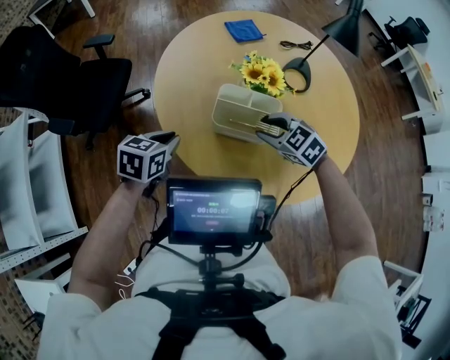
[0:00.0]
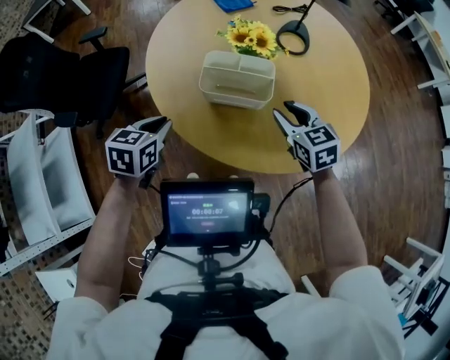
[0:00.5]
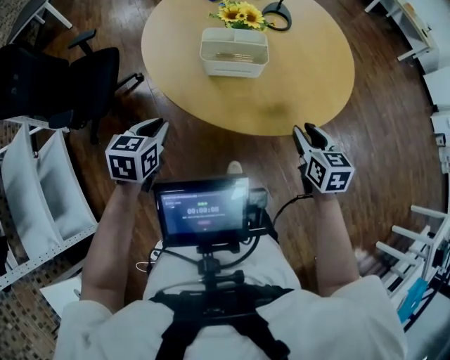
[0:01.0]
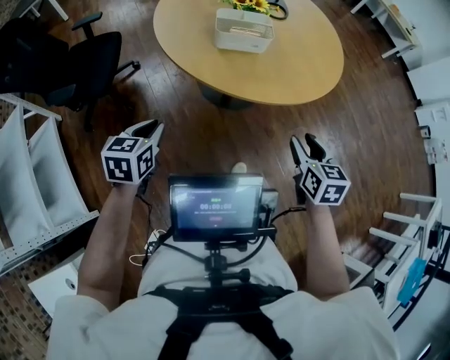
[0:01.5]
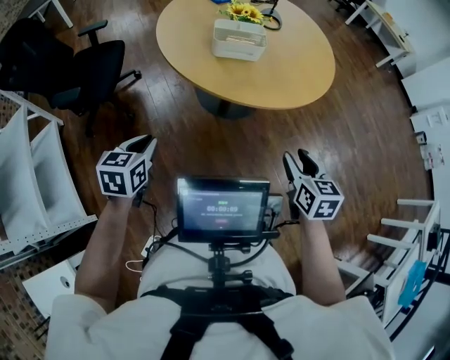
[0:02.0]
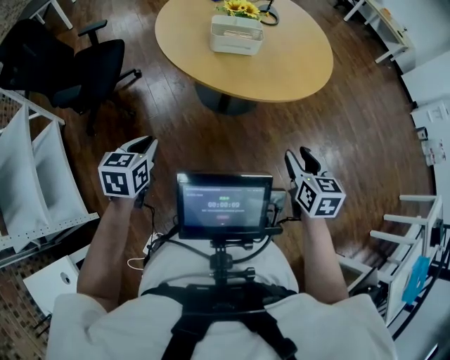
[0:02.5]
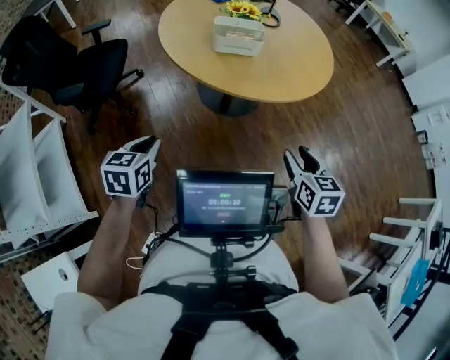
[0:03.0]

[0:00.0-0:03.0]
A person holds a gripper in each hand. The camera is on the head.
0:00.0 to 0:01.5: The left gripper moves approximately 30 cm. Meanwhile the right gripper ends up about 40 cm from where it was, and changes its angle by approximately 70 degrees.
0:01.5 to 0:03.0: The left gripper changes place by about 5 cm.

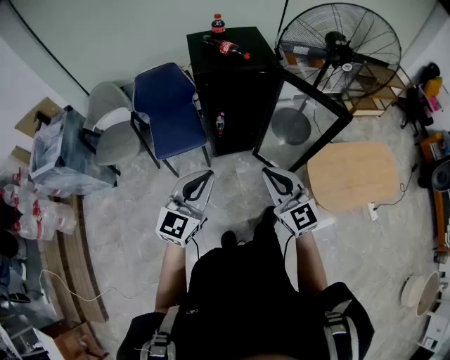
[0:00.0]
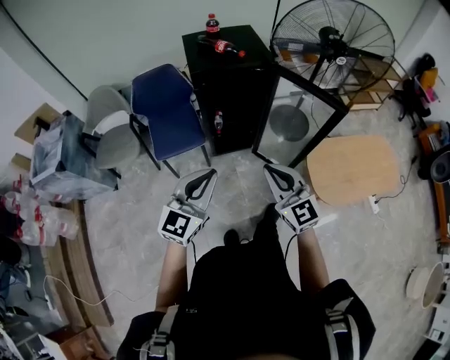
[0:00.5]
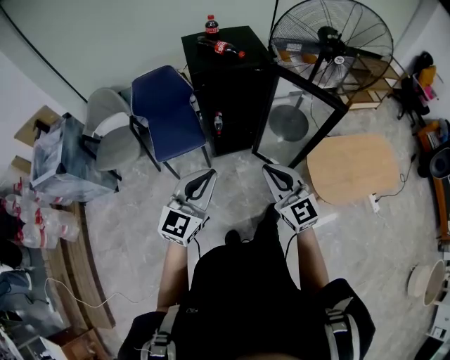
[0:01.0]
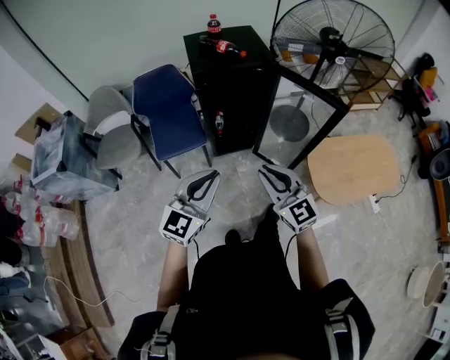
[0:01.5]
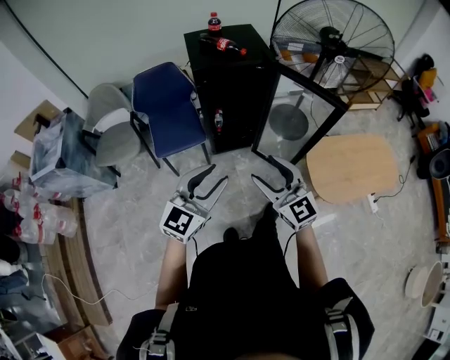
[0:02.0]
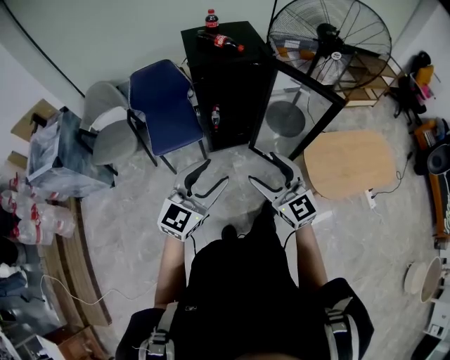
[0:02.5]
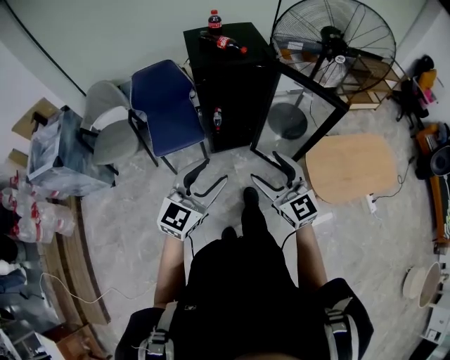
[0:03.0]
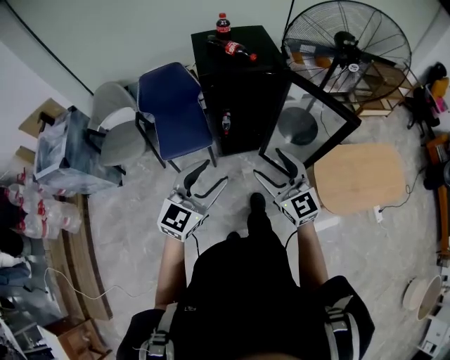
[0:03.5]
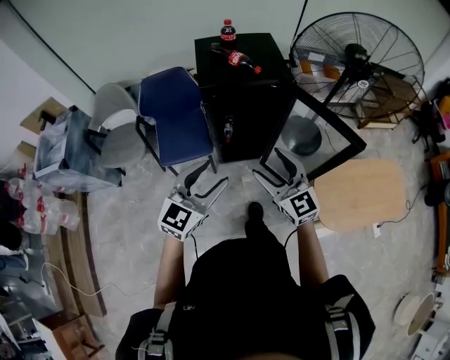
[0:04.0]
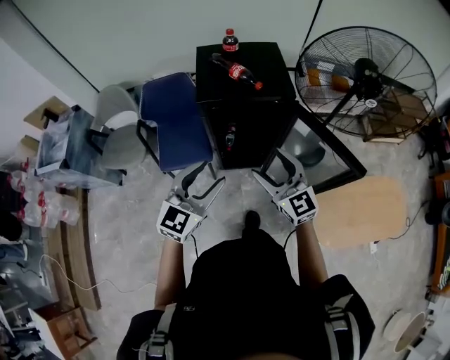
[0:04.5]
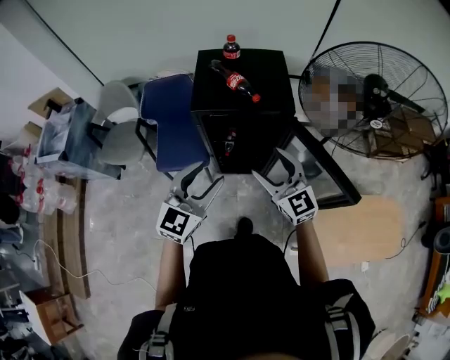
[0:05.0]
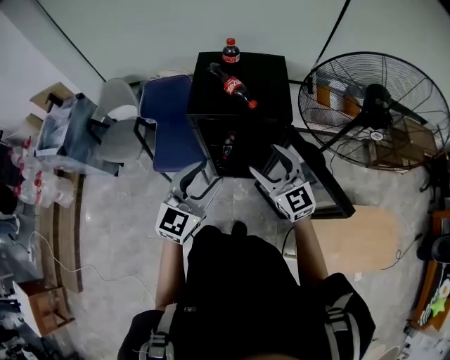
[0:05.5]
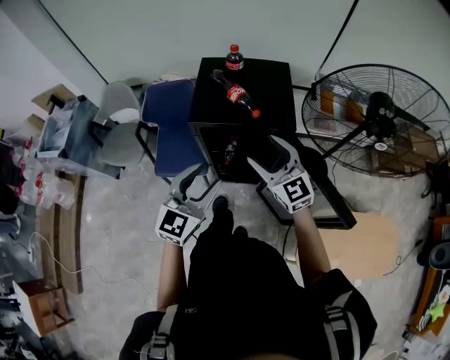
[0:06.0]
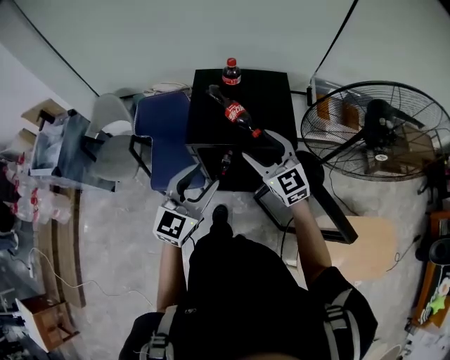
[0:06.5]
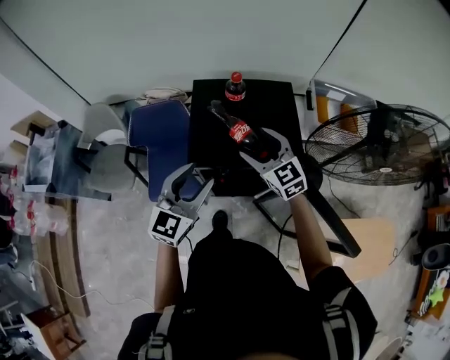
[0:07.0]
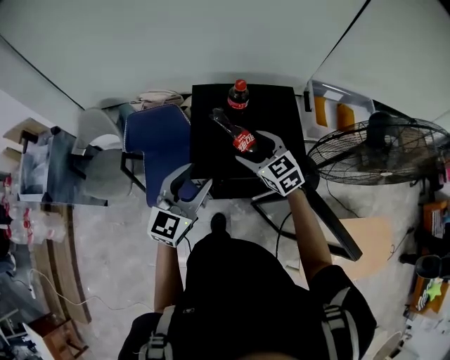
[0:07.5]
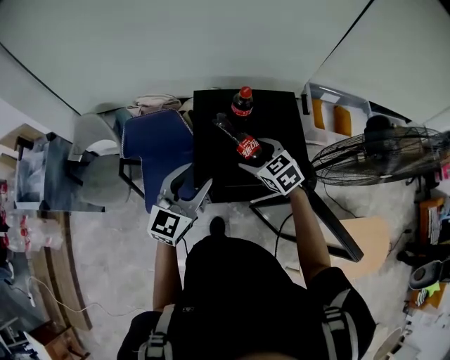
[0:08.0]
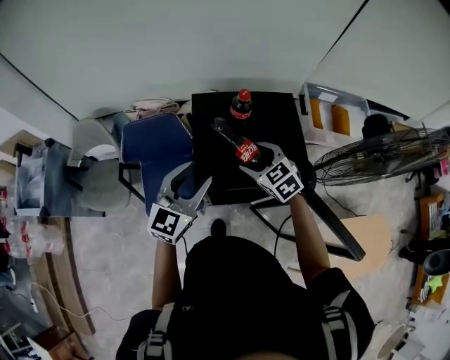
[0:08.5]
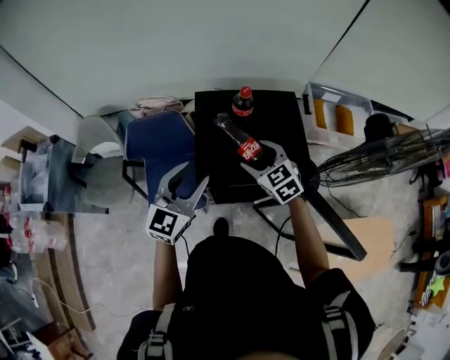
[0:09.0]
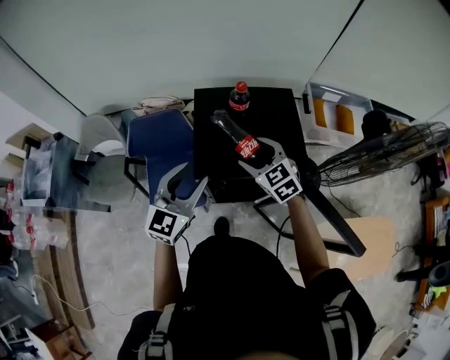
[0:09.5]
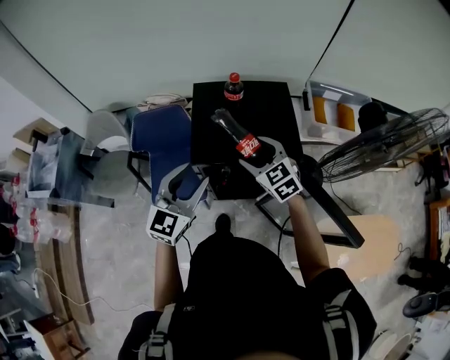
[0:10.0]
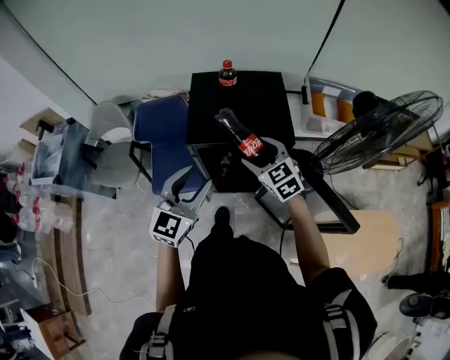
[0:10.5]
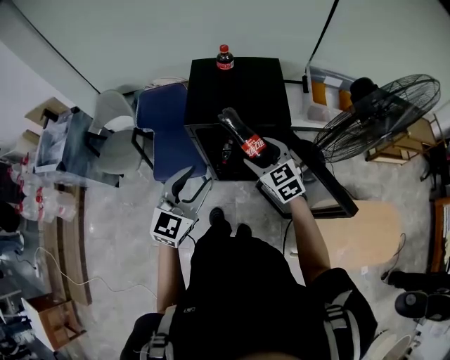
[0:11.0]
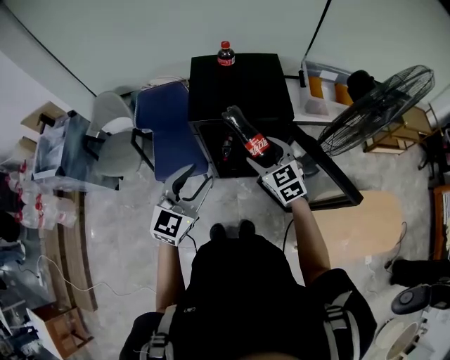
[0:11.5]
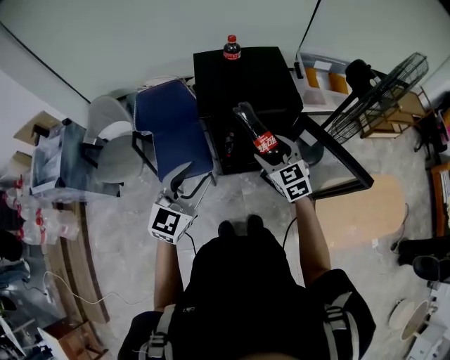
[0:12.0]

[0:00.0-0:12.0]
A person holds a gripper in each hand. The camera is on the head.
0:00.0 to 0:02.0: The right gripper opens up. The left gripper opens up.
0:02.0 to 0:04.0: The two grippers go approximately 15 cm forward. The left gripper opens its fingers.
0:04.0 to 0:06.0: The right gripper is displaced forward by about 20 cm, while the left gripper is displaced forward and to the right by about 20 cm.
0:06.0 to 0:08.0: The left gripper shifts roughly 20 cm forward. The right gripper moves forward and downward, approximately 25 cm, and points its fingers roughly 30 degrees further downward.
0:08.0 to 0:10.0: Both grippers travel together backward, approximately 5 cm.
0:10.0 to 0:12.0: Both grippers travel together backward, about 15 cm.

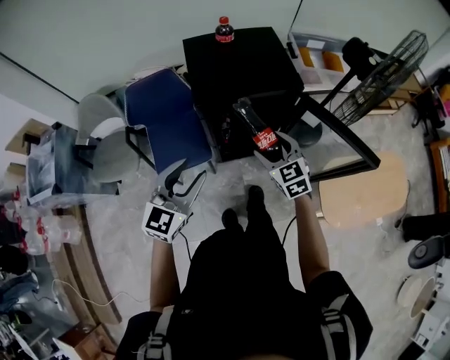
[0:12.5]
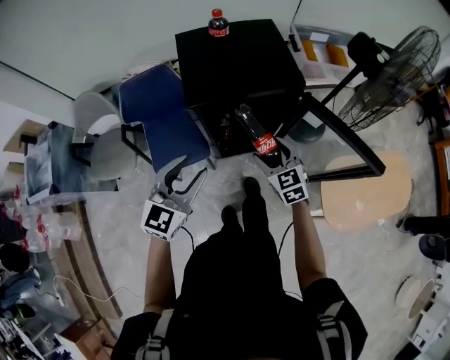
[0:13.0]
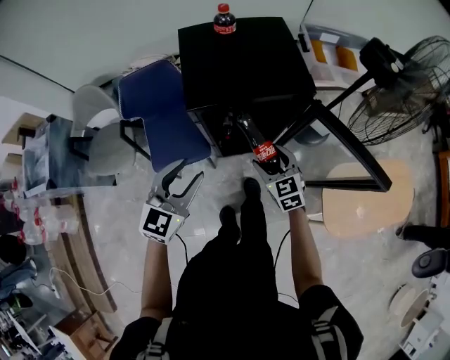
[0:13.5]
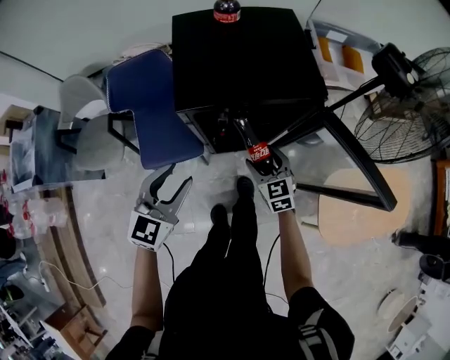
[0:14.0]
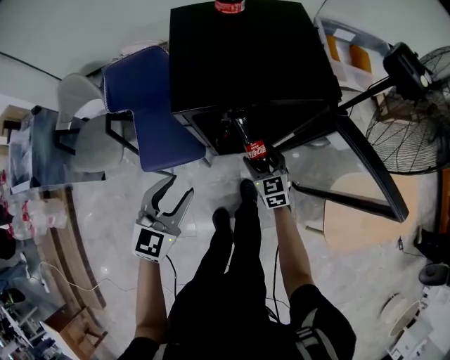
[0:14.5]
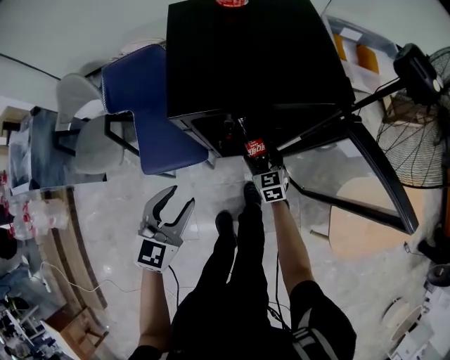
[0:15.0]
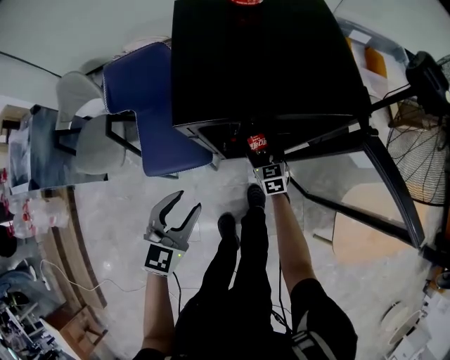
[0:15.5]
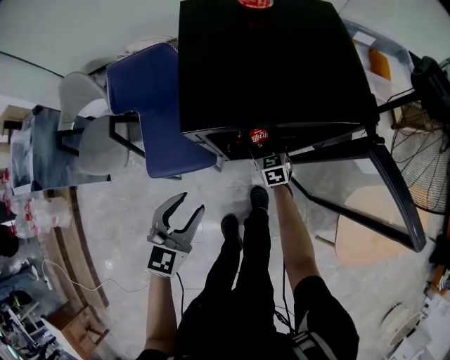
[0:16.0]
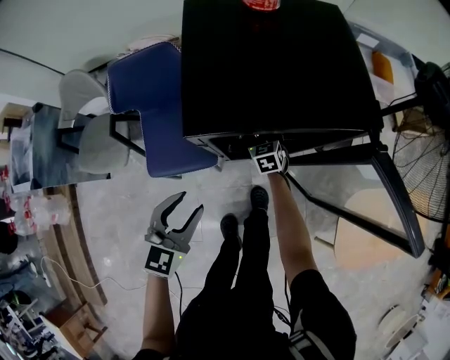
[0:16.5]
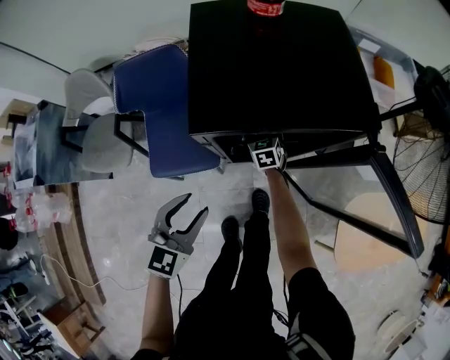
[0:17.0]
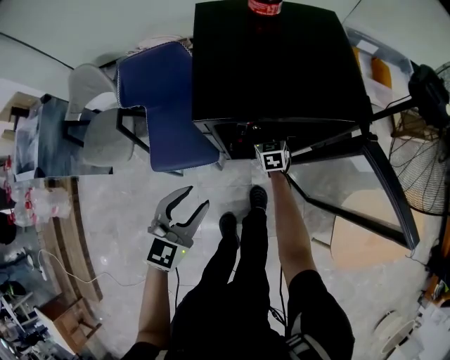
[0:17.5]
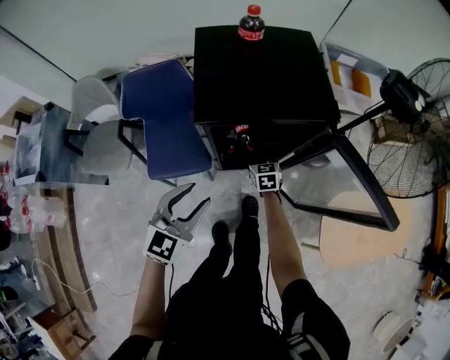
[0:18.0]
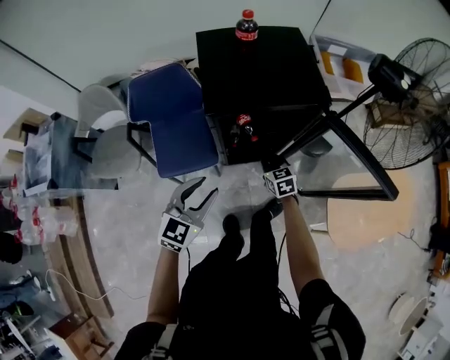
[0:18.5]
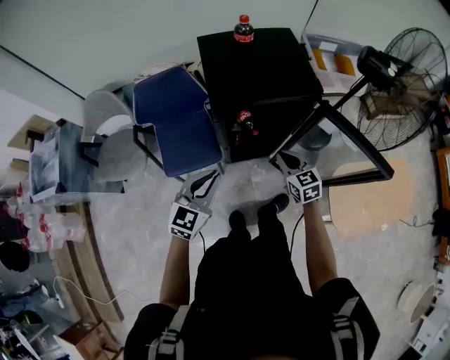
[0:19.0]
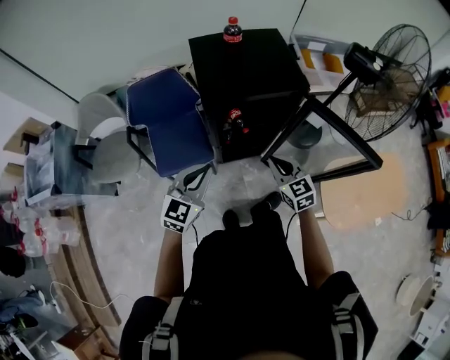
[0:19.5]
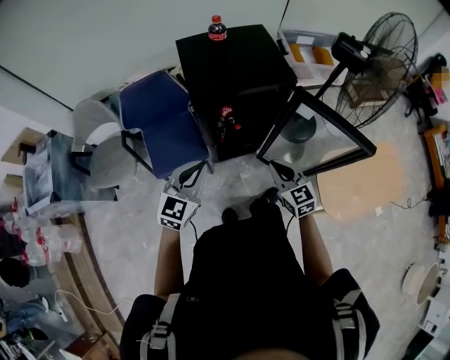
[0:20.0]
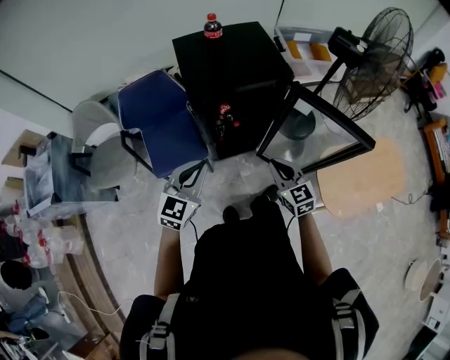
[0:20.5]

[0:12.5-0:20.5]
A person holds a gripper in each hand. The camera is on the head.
0:12.5 to 0:14.5: The right gripper goes approximately 25 cm downward; the left gripper shifts about 15 cm downward.
0:14.5 to 0:16.5: The right gripper shifts approximately 20 cm forward and downward. Meanwhile the left gripper heads downward, covering roughly 5 cm.
0:16.5 to 0:18.5: The right gripper travels backward and upward by roughly 20 cm, and closes its fingers. Meanwhile the left gripper goes some 10 cm upward and backward.
0:18.5 to 0:20.5: The left gripper moves approximately 5 cm, and closes. The right gripper is displaced upward and backward by about 20 cm.

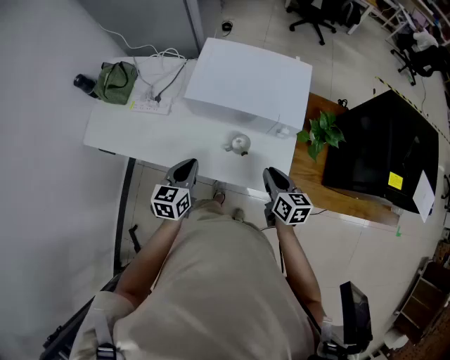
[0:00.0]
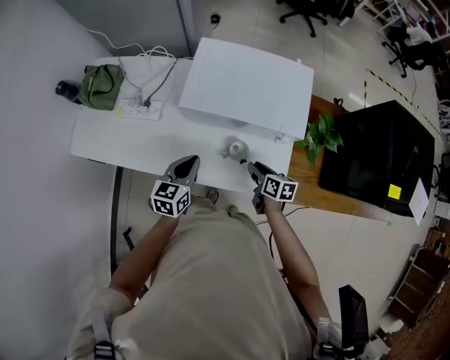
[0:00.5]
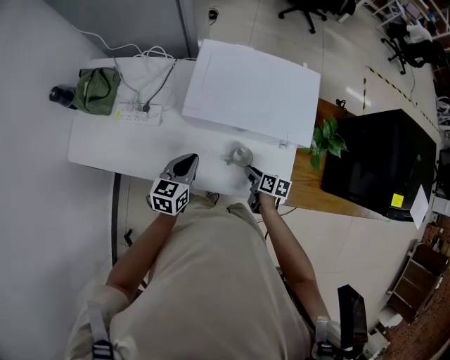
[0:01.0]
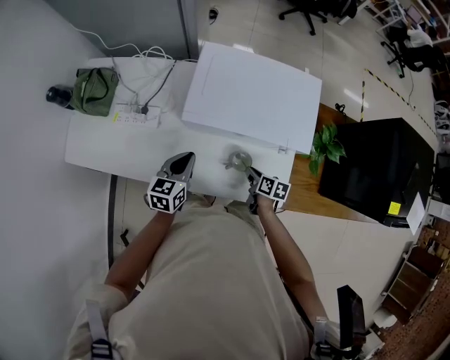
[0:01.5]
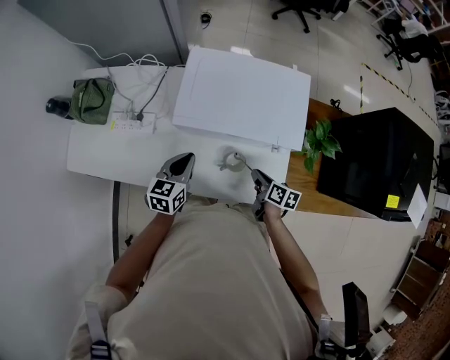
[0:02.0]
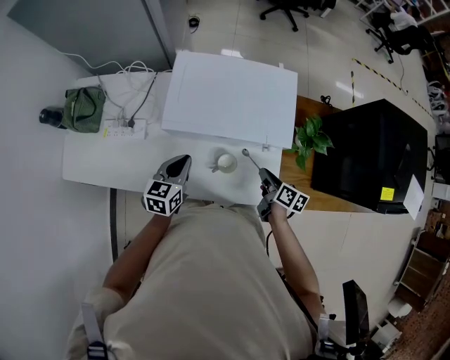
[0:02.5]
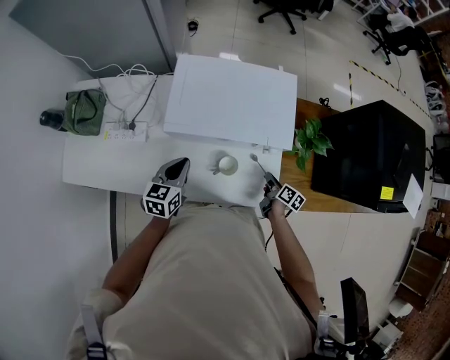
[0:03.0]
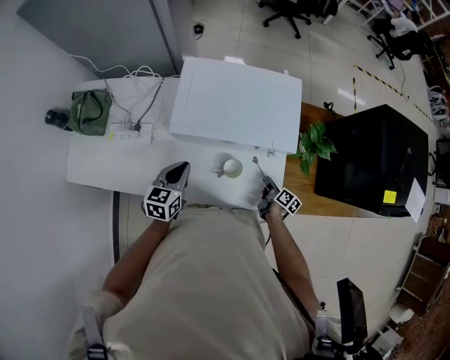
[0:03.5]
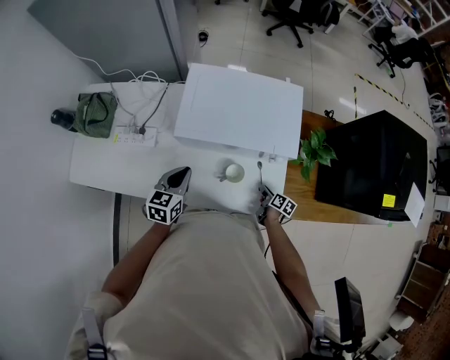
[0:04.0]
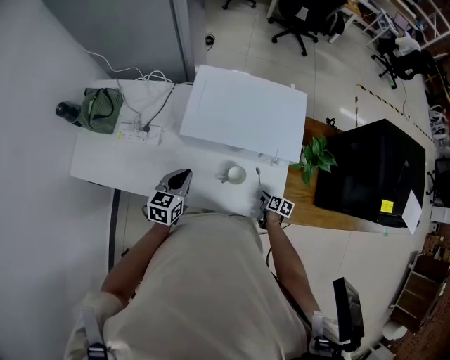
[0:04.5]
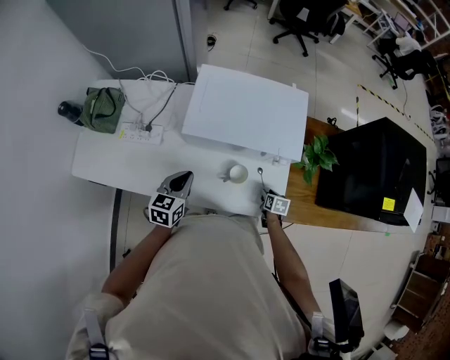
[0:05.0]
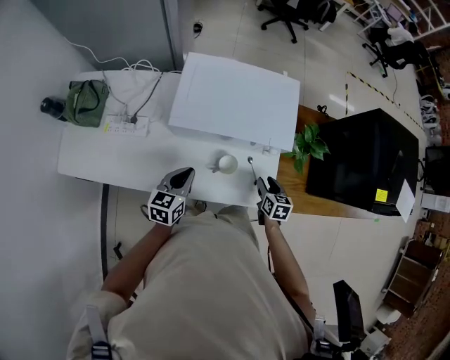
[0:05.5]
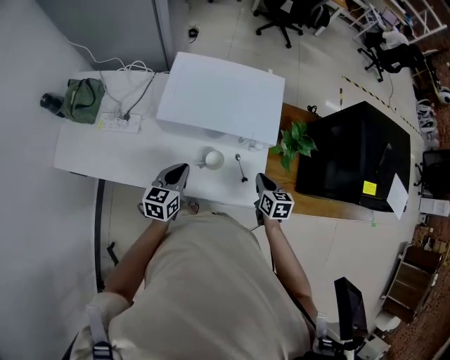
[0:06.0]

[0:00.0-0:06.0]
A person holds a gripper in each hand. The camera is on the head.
0:00.0 to 0:02.0: The left gripper shifts about 15 cm forward; the right gripper goes roughly 15 cm downward and forward, and rotates approximately 30 degrees.
0:02.0 to 0:04.0: The right gripper heads downward and to the right, covering approximately 15 cm.
0:04.0 to 0:06.0: The left gripper is displaced to the right by about 5 cm; the right gripper goes some 20 cm upward, rotates around the line of its fingers by some 40 degrees, counterclockwise from behind, and opens, then closes again.
